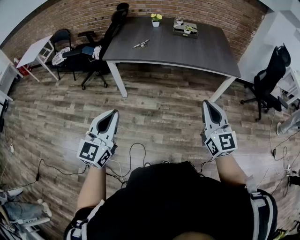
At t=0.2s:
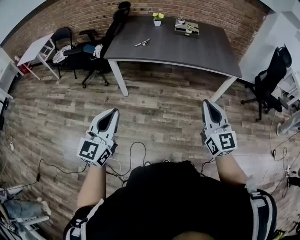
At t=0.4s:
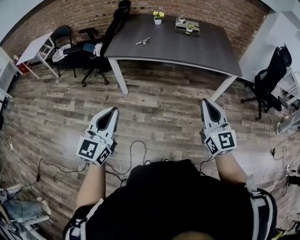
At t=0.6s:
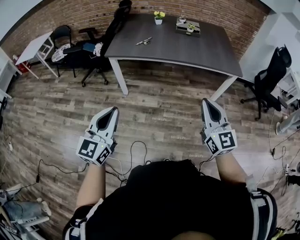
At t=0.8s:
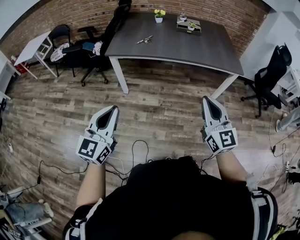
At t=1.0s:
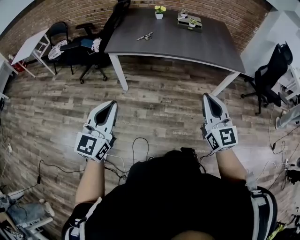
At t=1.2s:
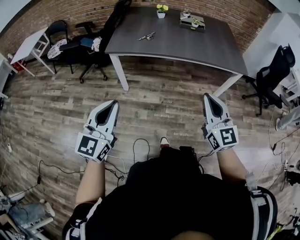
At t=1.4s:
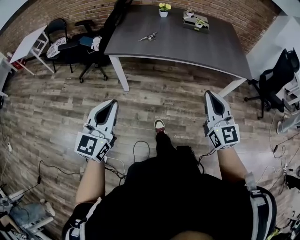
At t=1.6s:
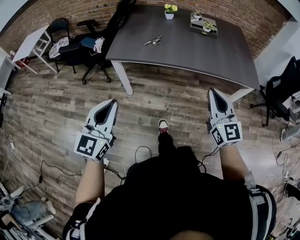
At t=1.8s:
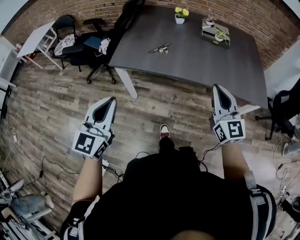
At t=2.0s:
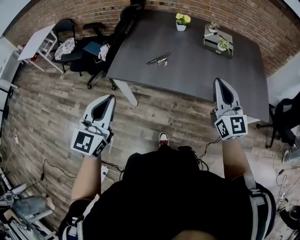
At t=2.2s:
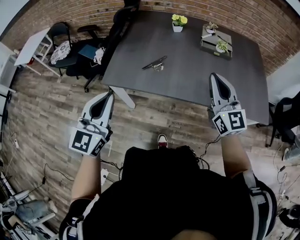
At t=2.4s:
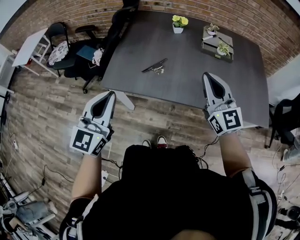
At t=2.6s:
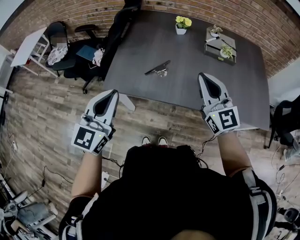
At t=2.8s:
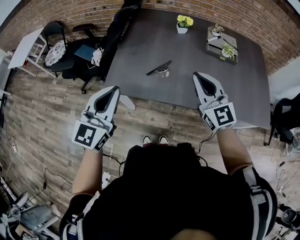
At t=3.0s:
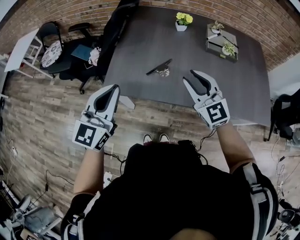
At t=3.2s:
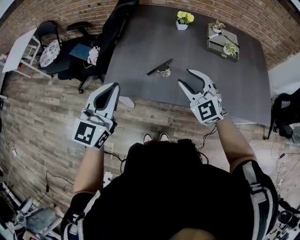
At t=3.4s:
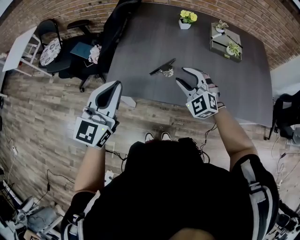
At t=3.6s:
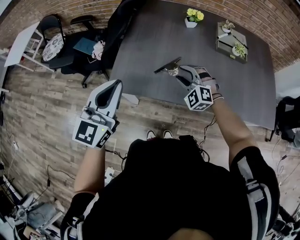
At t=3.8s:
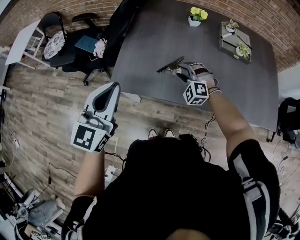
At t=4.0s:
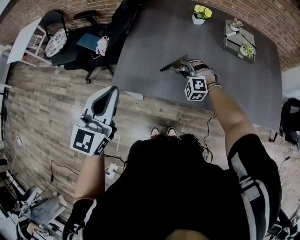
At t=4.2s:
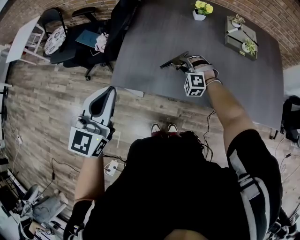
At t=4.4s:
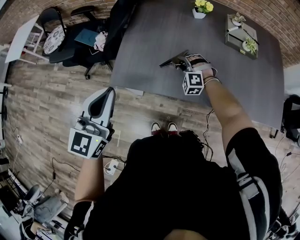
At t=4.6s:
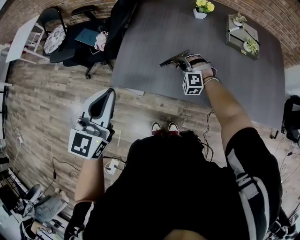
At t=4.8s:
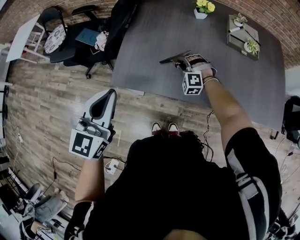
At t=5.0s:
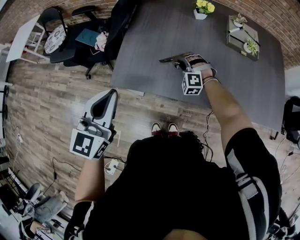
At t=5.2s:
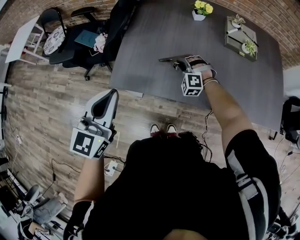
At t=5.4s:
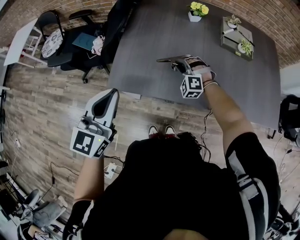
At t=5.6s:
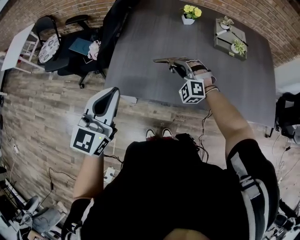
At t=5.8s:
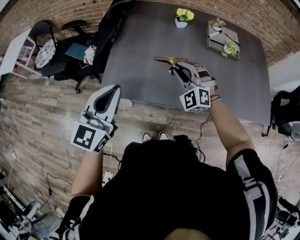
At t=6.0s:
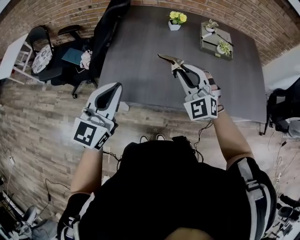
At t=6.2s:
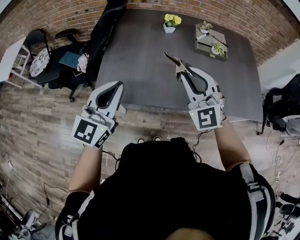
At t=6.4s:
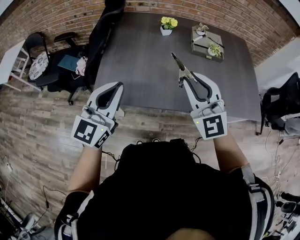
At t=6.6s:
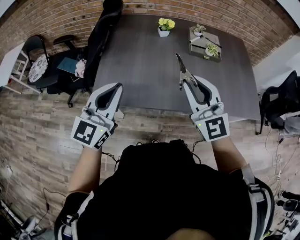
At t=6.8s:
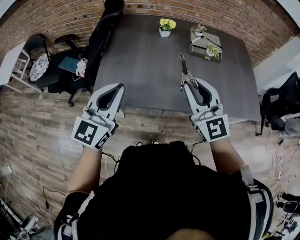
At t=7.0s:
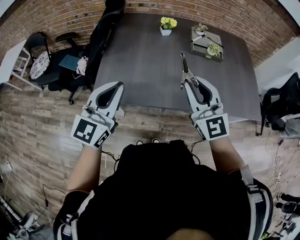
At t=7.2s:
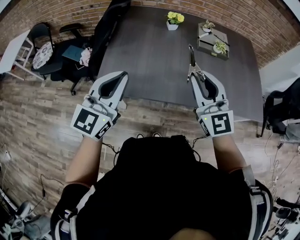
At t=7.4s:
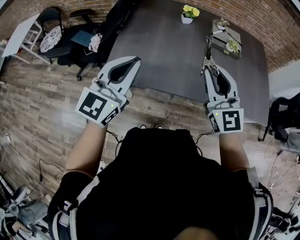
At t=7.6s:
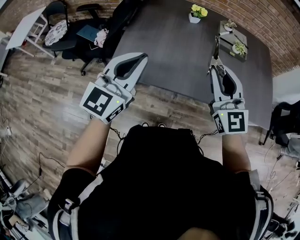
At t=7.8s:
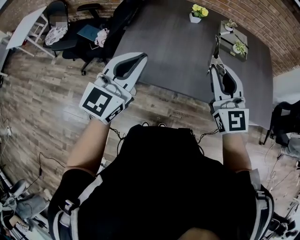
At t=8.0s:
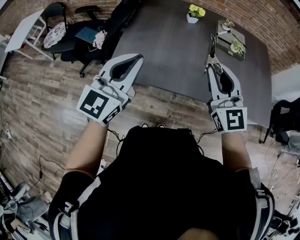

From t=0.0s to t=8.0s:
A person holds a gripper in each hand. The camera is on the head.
From t=0.0s to t=1.6s: The left gripper is displaced forward and to the left by some 20 cm. Meanwhile the right gripper travels forward by roughly 20 cm.
From t=1.6s to t=3.2s: Both grippers move forward, some 40 cm. The right gripper turns by approximately 40 degrees, and opens up.
From t=3.2s to t=4.8s: The right gripper shifts about 25 cm downward and forward, turns by about 50 degrees, and closes up. Meanwhile the left gripper moves roughly 5 cm.
From t=4.8s to t=6.4s: The left gripper moves to the right, approximately 10 cm, while the right gripper travels upward and backward by roughly 35 cm, and tips its fingers upward by roughly 40 degrees.
From t=6.4s to t=8.0s: The grippers stay close to where they were, moving slightly.

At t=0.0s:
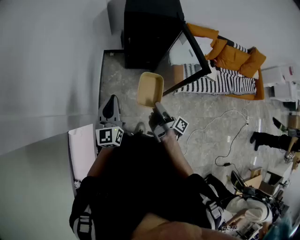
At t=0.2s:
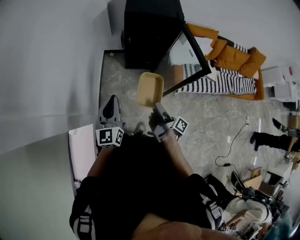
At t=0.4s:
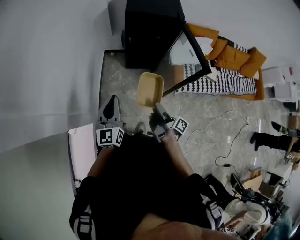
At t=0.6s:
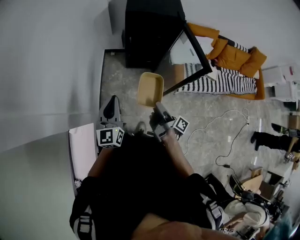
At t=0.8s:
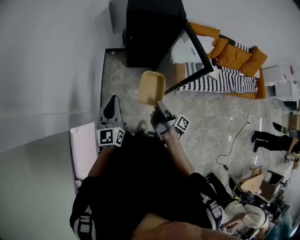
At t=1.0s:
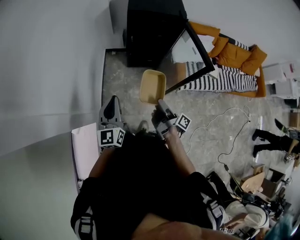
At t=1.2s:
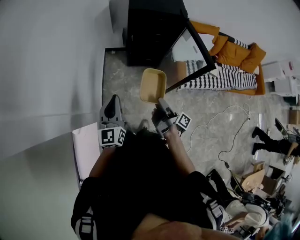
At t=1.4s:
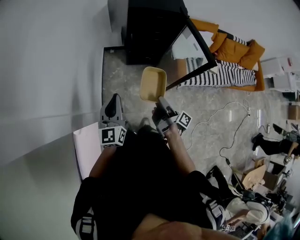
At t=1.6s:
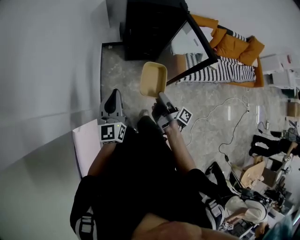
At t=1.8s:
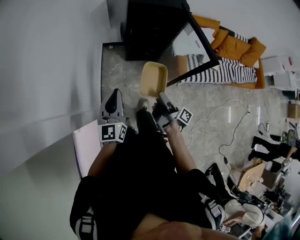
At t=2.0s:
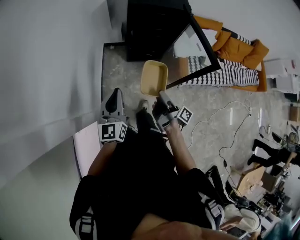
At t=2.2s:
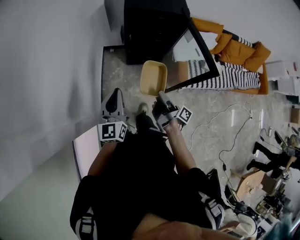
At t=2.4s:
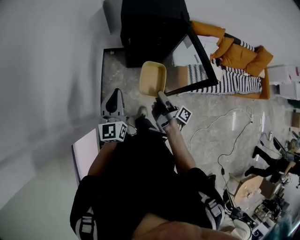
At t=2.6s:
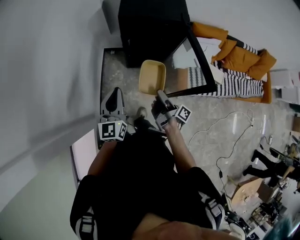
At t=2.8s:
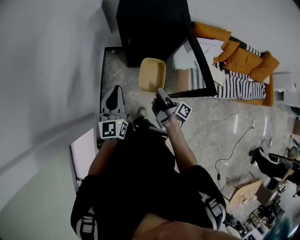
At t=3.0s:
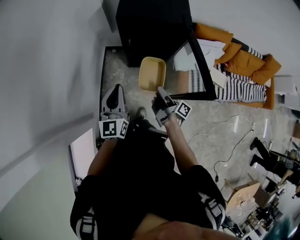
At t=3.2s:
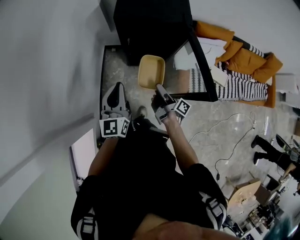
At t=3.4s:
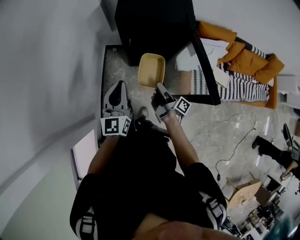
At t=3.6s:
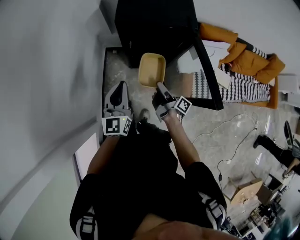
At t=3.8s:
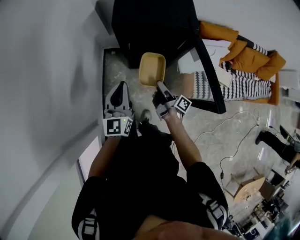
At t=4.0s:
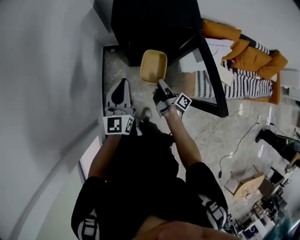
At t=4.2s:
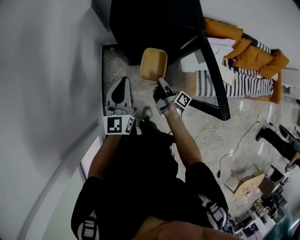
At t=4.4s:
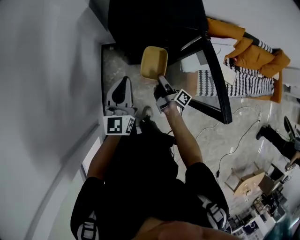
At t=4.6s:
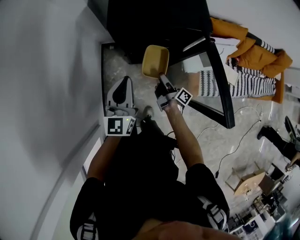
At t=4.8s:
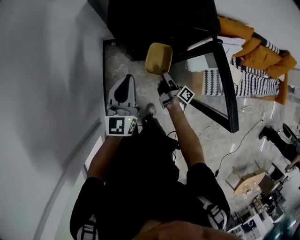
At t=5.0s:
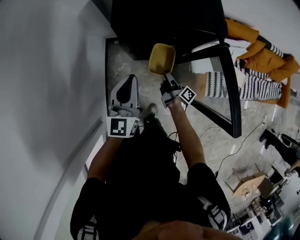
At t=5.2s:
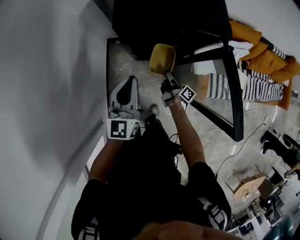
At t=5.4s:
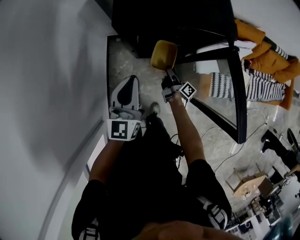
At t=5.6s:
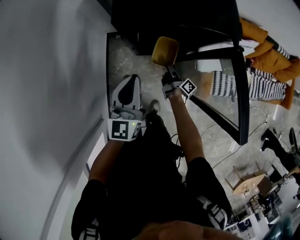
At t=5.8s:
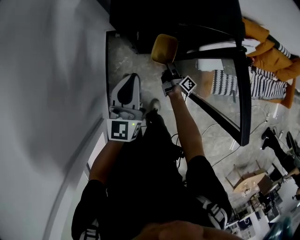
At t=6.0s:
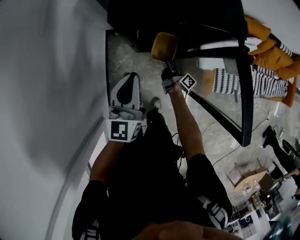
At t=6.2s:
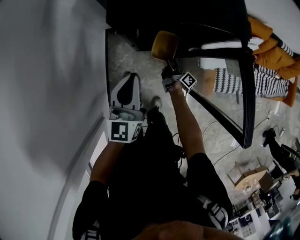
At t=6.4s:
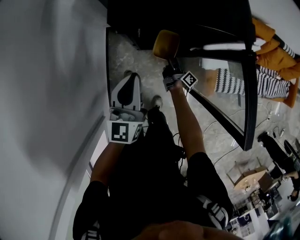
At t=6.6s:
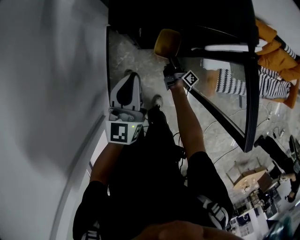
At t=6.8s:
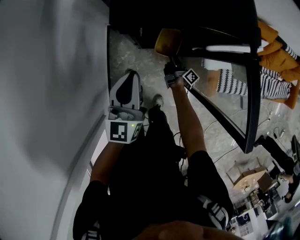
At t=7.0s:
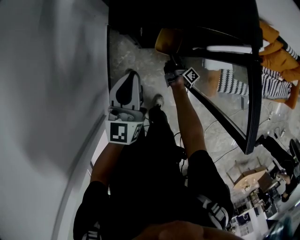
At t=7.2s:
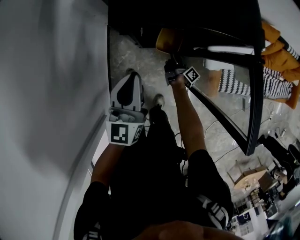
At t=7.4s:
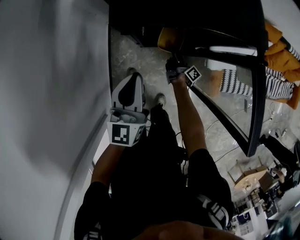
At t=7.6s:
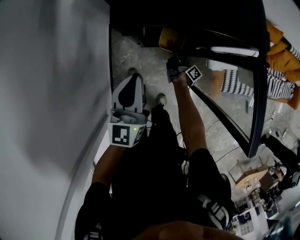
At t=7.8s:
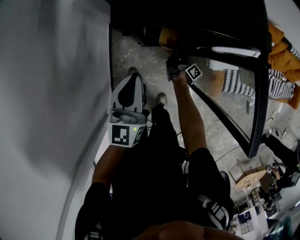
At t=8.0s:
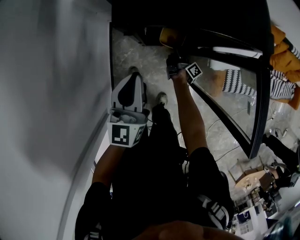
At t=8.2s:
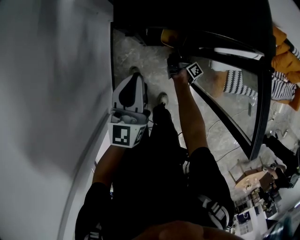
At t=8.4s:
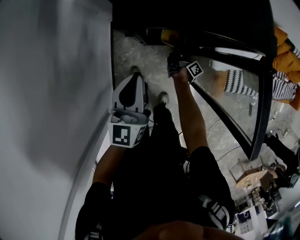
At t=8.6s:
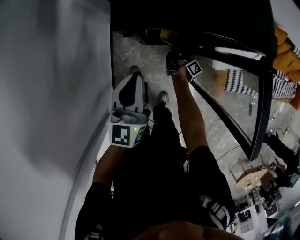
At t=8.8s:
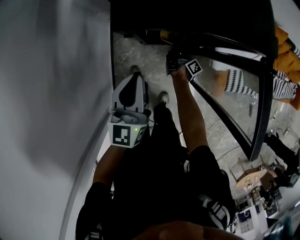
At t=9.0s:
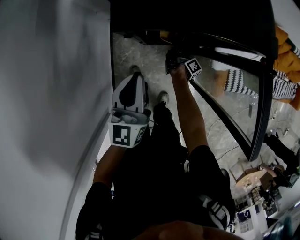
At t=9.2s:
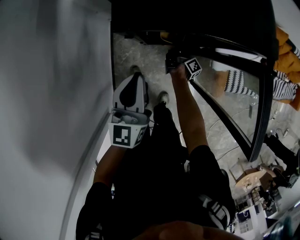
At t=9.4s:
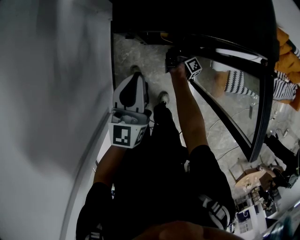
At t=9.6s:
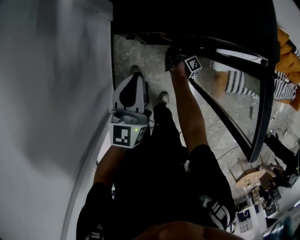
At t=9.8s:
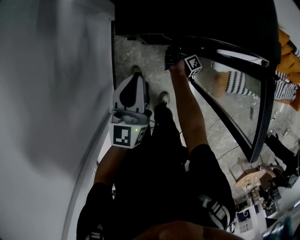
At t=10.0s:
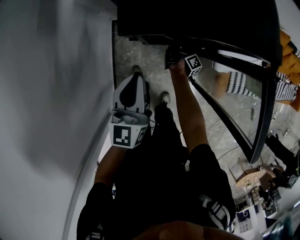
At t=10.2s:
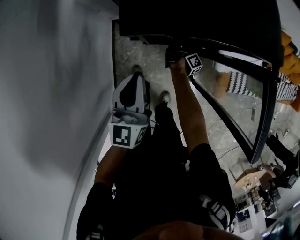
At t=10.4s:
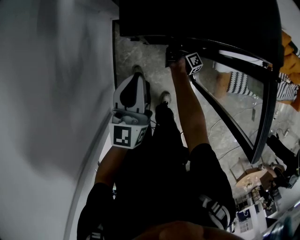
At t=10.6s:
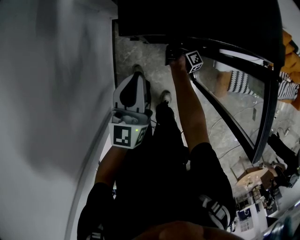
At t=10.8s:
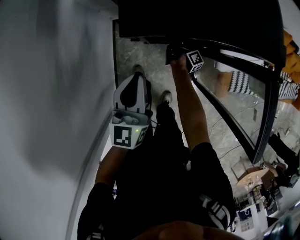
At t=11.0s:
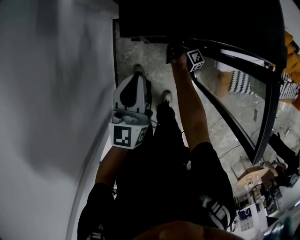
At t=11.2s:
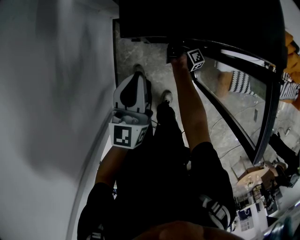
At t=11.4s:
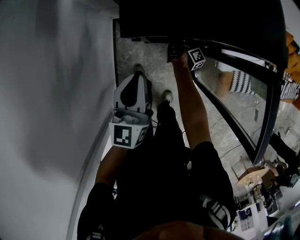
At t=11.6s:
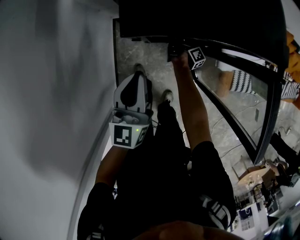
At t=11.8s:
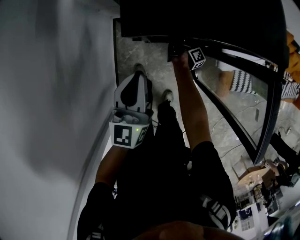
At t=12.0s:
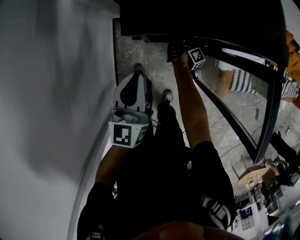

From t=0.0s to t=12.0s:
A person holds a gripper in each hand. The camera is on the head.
From t=1.6s to t=3.0s: The left gripper moves about 25 cm.
From t=3.0s to t=4.4s: The left gripper moves some 15 cm.
From t=4.4s to t=6.0s: The left gripper is displaced downward by some 5 cm.

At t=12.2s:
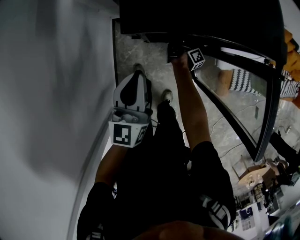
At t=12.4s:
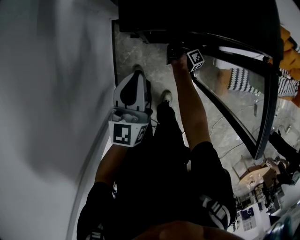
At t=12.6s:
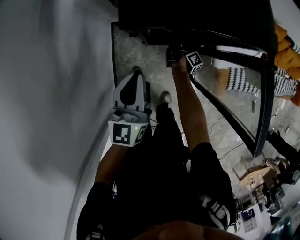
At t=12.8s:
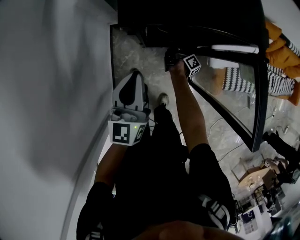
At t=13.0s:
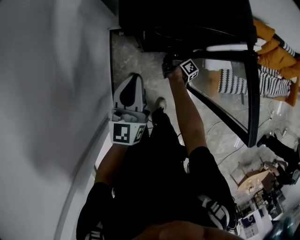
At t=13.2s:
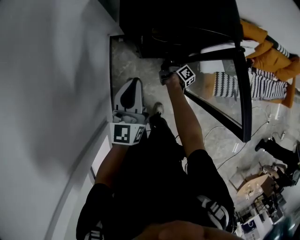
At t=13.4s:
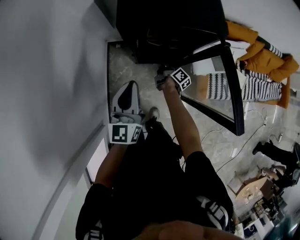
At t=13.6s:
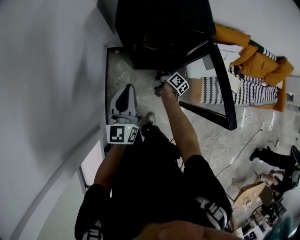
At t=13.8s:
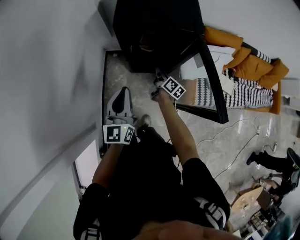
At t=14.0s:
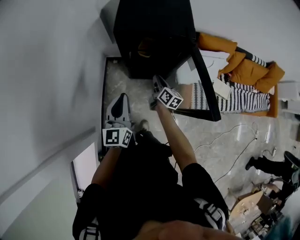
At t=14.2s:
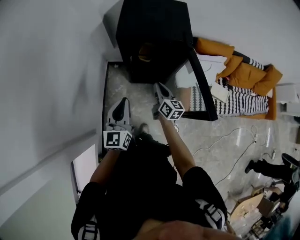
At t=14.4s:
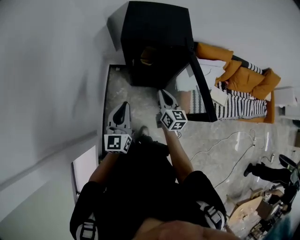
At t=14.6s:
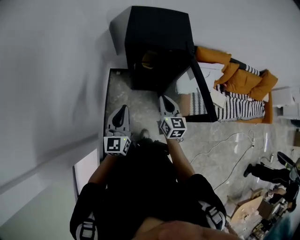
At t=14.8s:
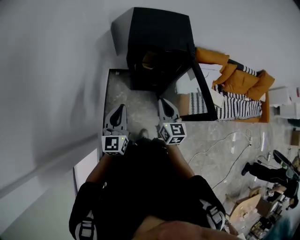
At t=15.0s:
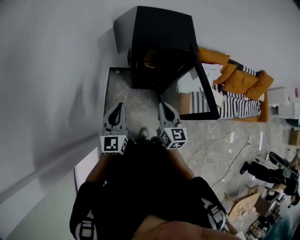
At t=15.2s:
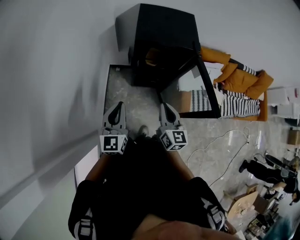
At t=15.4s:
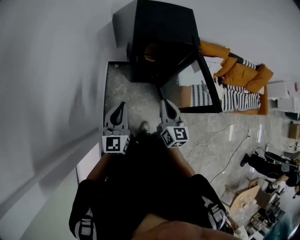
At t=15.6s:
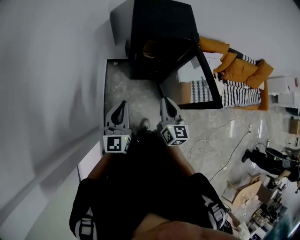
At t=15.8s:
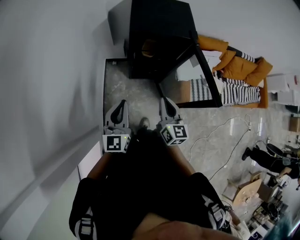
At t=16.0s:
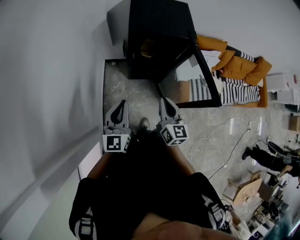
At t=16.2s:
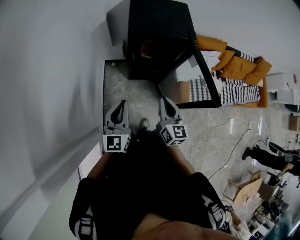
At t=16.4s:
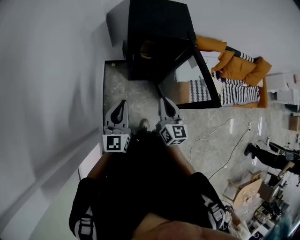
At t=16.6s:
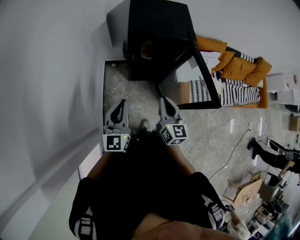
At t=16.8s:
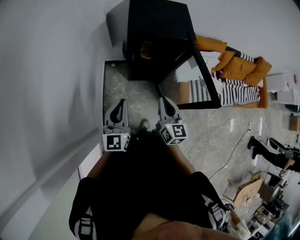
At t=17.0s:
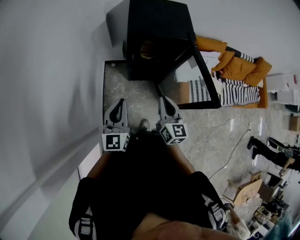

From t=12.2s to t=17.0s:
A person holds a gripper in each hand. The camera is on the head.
From t=12.2s to t=13.8s: The left gripper shifts by roughly 25 cm.
From t=13.8s to t=15.4s: The left gripper shifts by some 15 cm.
